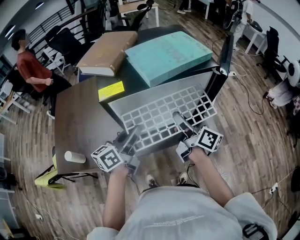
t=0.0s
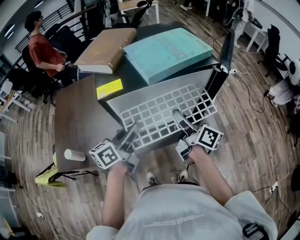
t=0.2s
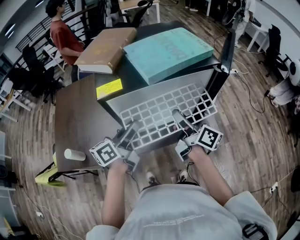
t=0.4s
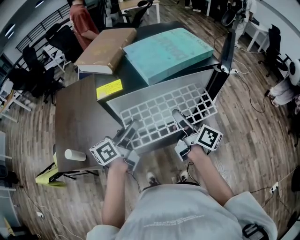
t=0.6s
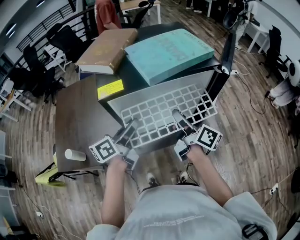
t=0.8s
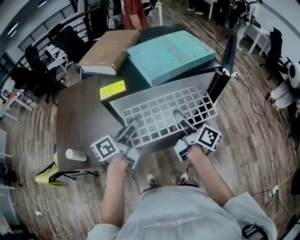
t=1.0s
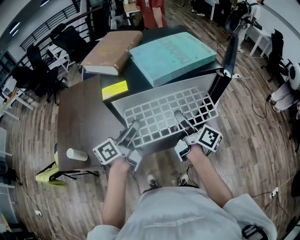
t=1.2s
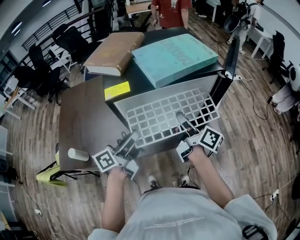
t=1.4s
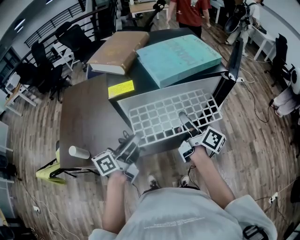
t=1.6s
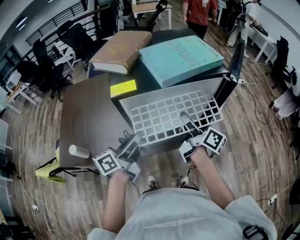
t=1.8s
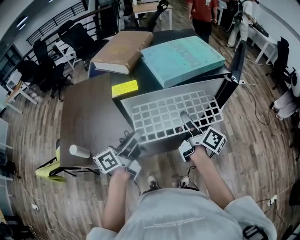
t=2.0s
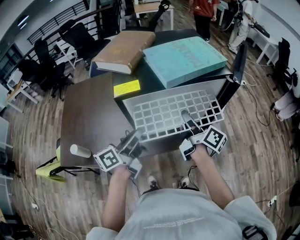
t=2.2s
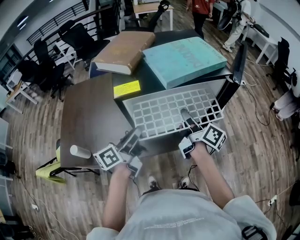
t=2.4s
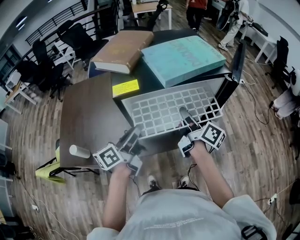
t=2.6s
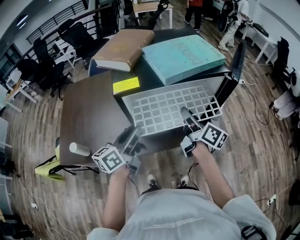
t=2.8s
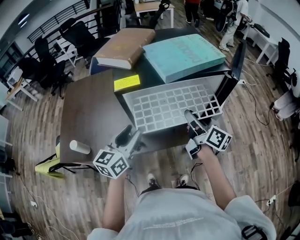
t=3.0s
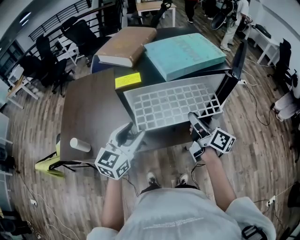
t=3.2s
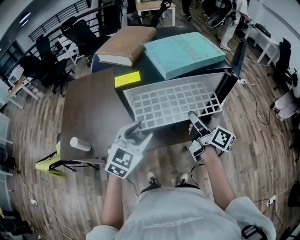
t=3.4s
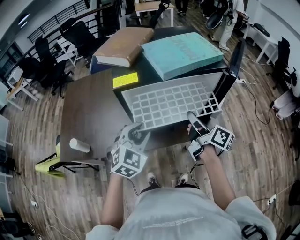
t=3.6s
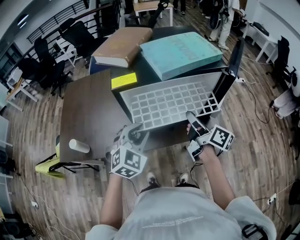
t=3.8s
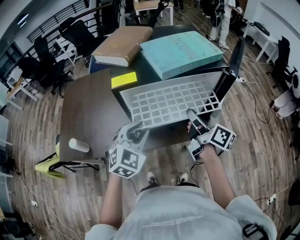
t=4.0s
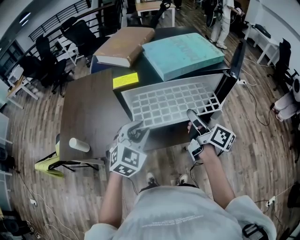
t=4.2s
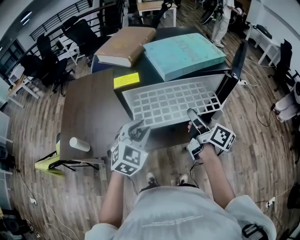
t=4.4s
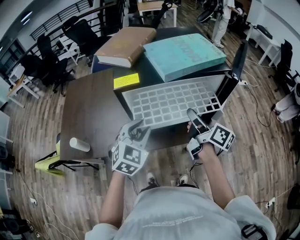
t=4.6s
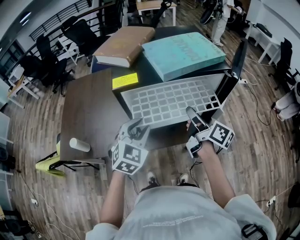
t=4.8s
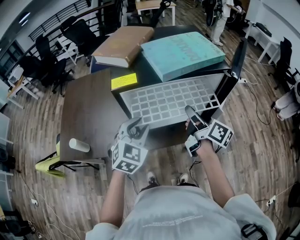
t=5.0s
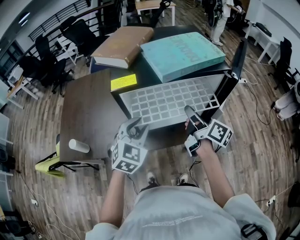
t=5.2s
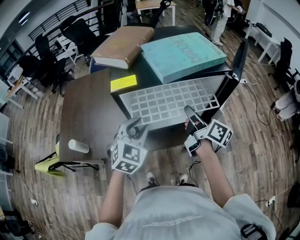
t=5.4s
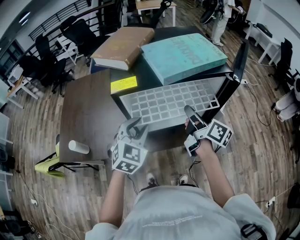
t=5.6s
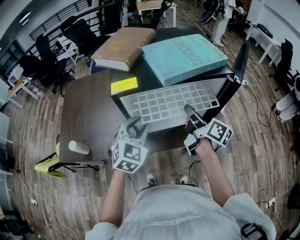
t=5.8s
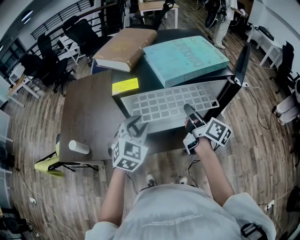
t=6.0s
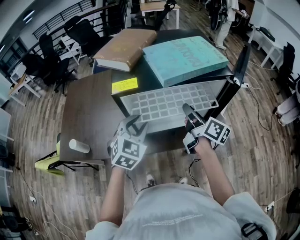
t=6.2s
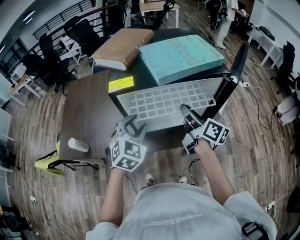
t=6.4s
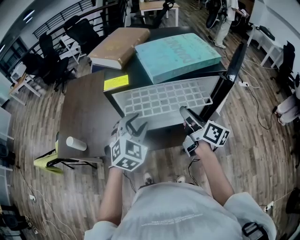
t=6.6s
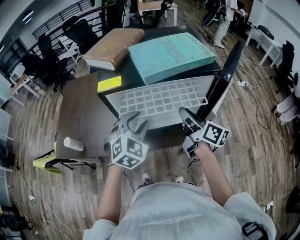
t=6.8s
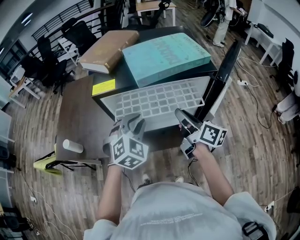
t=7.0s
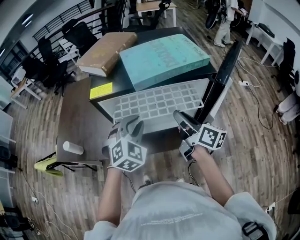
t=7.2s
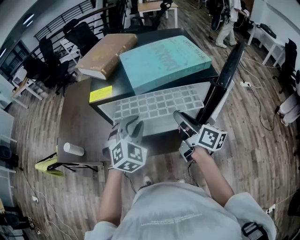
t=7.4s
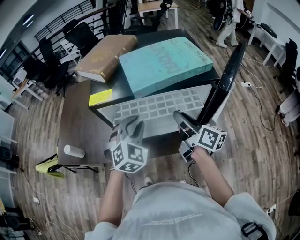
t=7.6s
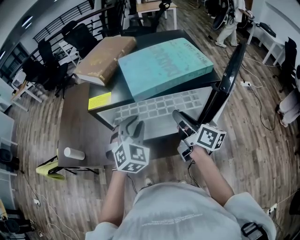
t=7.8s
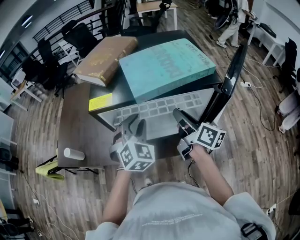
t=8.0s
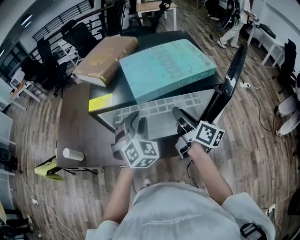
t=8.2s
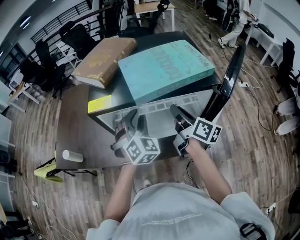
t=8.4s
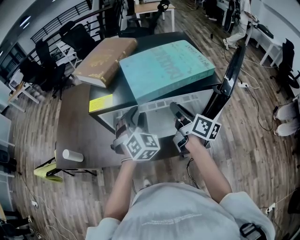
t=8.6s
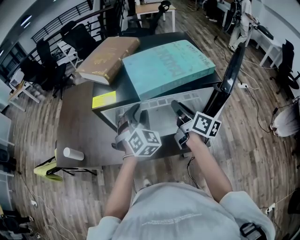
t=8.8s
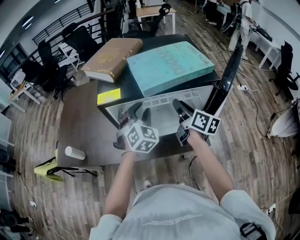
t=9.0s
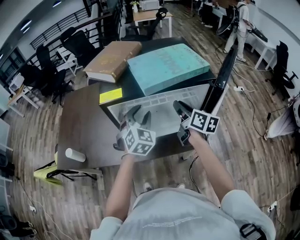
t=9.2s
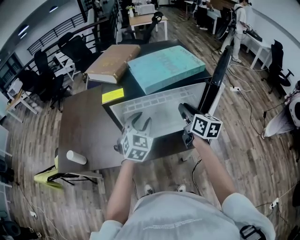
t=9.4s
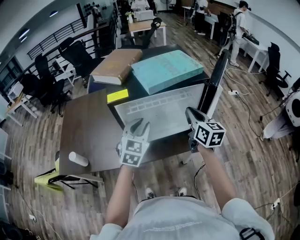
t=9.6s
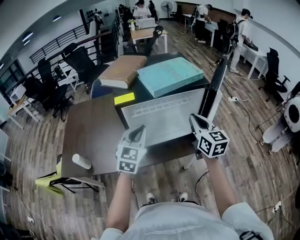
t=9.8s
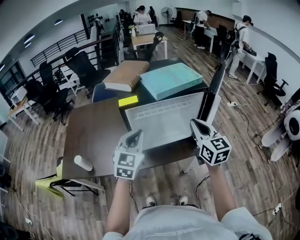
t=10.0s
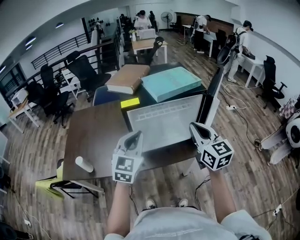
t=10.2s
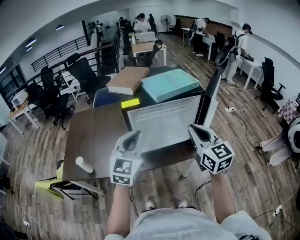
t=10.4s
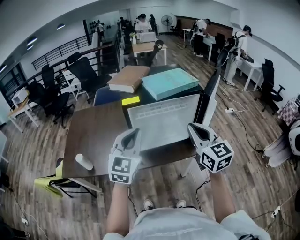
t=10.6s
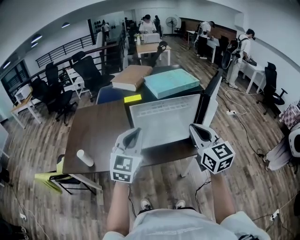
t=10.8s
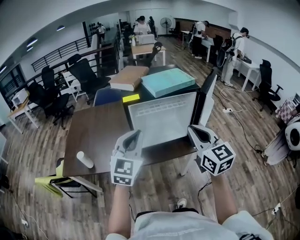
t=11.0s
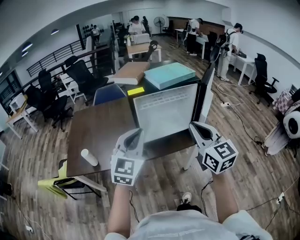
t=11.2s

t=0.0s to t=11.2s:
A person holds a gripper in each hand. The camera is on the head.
t=0.0s to t=1.6s: The grippers stay close to where they were, moving slightly.
t=1.6s to t=3.2s: The left gripper twists about 50 degrees clockwise, seen from behind, and opens its fingers.
t=3.2s to t=4.8s: The left gripper shifts by some 5 cm, turns by approximately 30 degrees, and closes its fingers.
t=4.8s to t=6.4s: The grippers move only a little.
t=6.4s to t=8.0s: The left gripper goes about 10 cm to the right and forward.
t=8.0s to t=9.6s: The left gripper changes place by some 5 cm, and swivels roughly 30 degrees. Meanwhile the right gripper is displaced backward by about 5 cm, and swivels about 40 degrees.
t=9.6s to t=11.2s: Both grippers move backward and upward, roughly 25 cm. The left gripper closes, while the right gripper changes its angle by roughly 20 degrees.

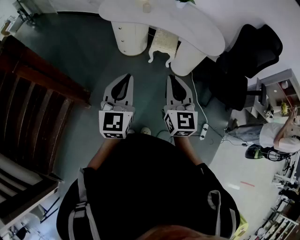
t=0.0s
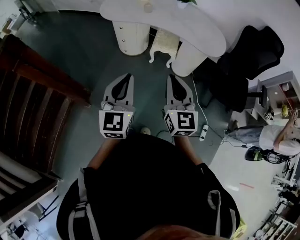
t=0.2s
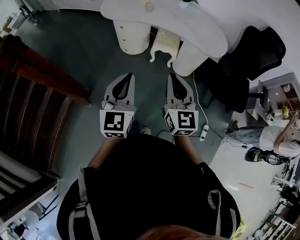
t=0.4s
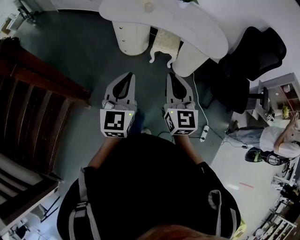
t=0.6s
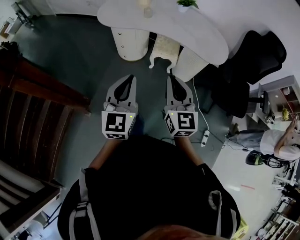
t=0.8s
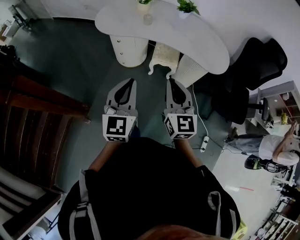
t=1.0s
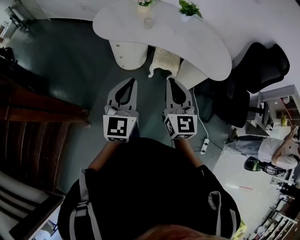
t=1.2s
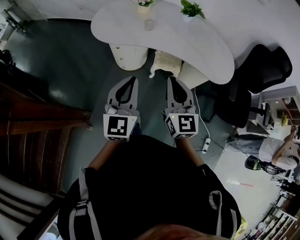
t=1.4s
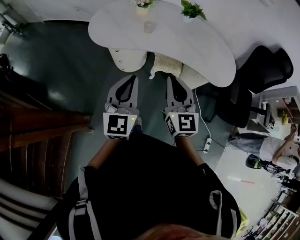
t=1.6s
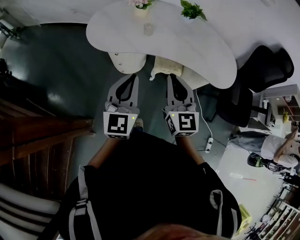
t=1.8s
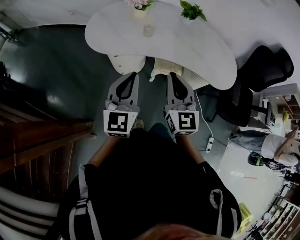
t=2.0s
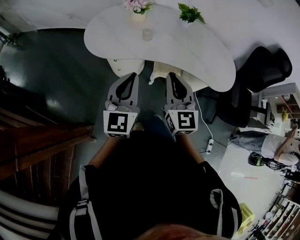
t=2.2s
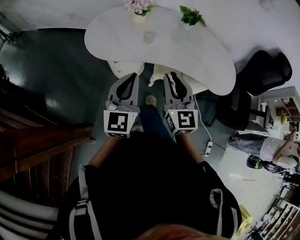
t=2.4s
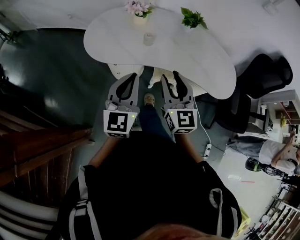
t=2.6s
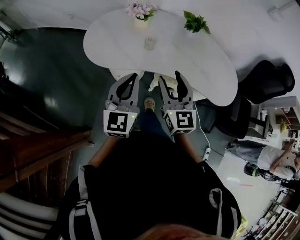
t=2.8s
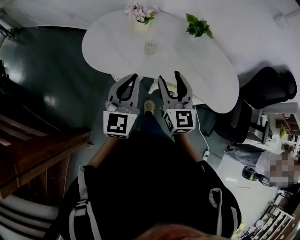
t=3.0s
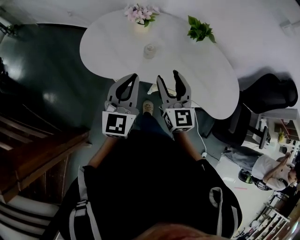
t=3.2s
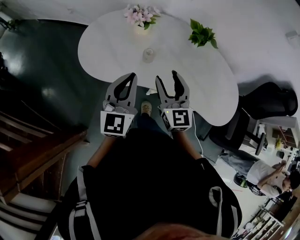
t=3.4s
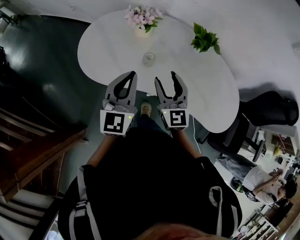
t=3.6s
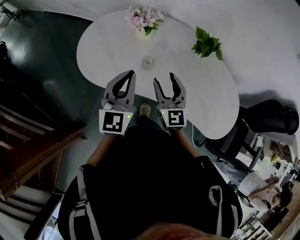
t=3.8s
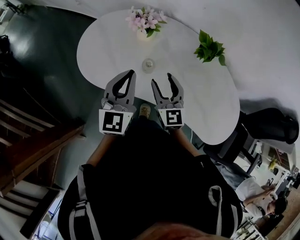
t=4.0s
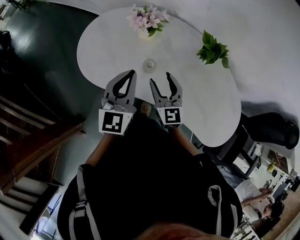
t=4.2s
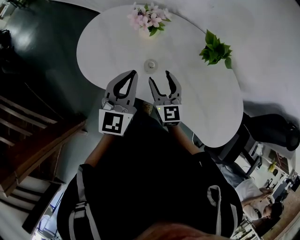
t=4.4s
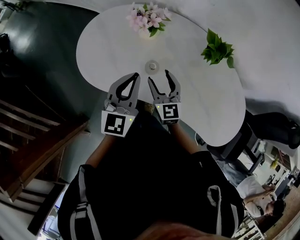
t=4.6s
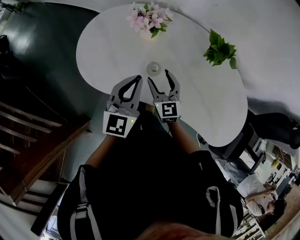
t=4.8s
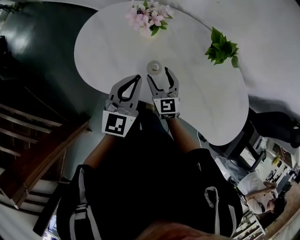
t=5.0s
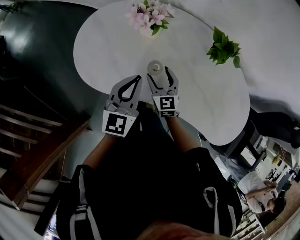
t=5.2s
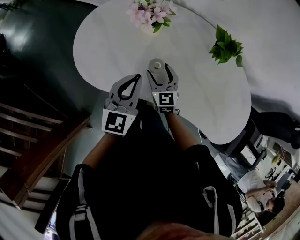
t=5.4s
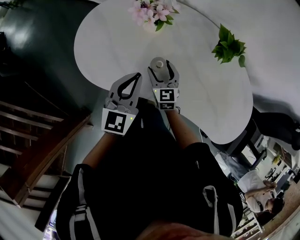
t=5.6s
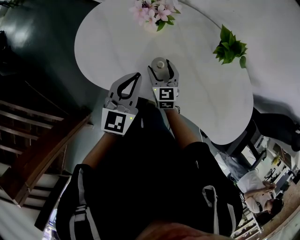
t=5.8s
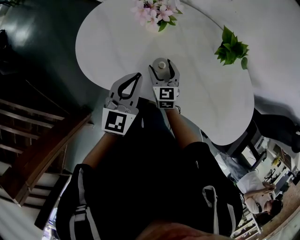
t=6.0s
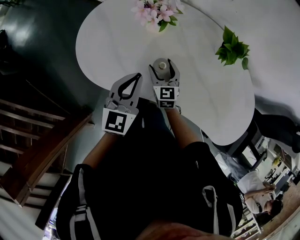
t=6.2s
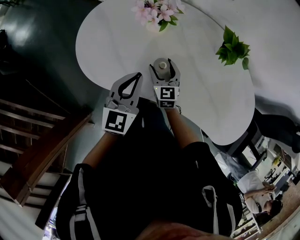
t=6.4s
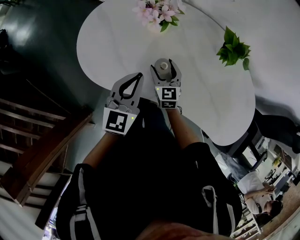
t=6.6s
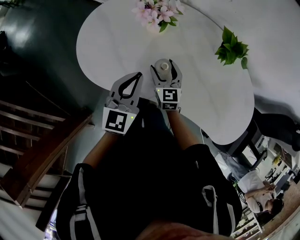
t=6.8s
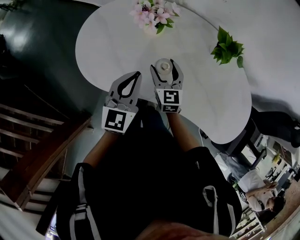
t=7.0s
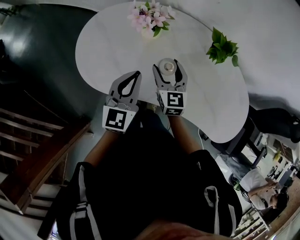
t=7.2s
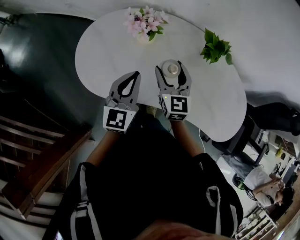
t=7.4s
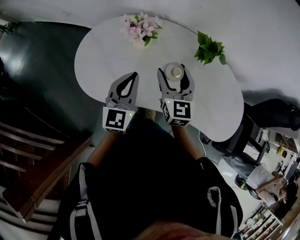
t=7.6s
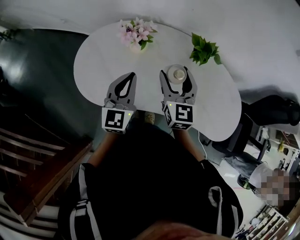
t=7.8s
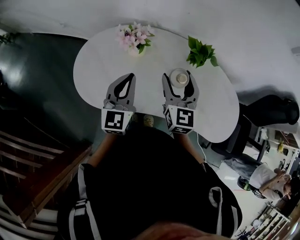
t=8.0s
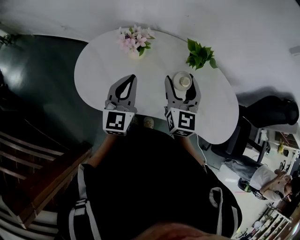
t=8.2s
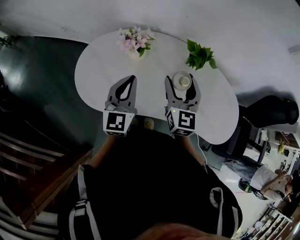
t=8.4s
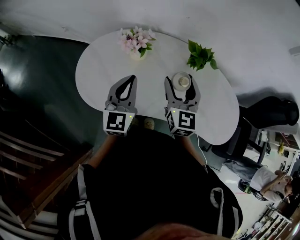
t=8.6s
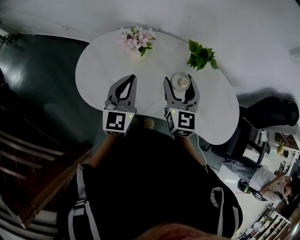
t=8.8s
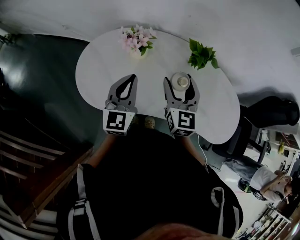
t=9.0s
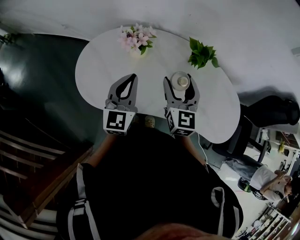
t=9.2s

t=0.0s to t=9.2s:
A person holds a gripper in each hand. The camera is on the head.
t=0.0s to t=1.6s: The two grippers go some 30 cm forward.
t=1.6s to t=3.0s: Both grippers travel together forward, some 20 cm. The right gripper opens its fingers.
t=3.0s to t=4.6s: The left gripper heads forward, covering some 20 cm. Meanwhile the right gripper goes roughly 25 cm forward and downward.
t=4.6s to t=6.2s: The left gripper moves downward, some 5 cm; the right gripper is displaced downward and forward by roughly 10 cm.
t=6.2s to t=7.6s: The right gripper is displaced upward by some 20 cm, while the left gripper moves upward, some 5 cm.
t=7.6s to t=9.2s: The right gripper ends up approximately 5 cm from where it was.

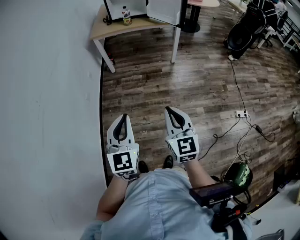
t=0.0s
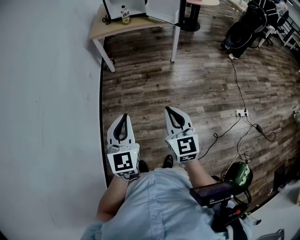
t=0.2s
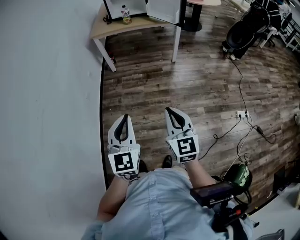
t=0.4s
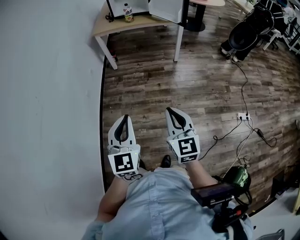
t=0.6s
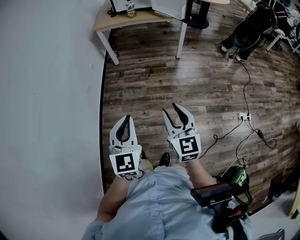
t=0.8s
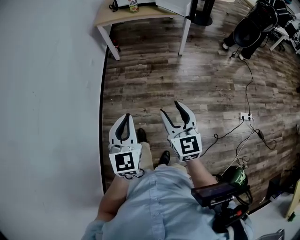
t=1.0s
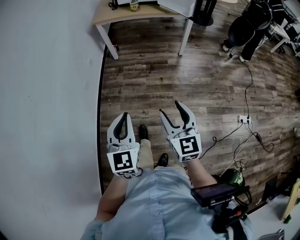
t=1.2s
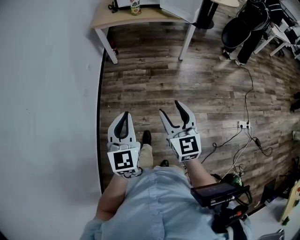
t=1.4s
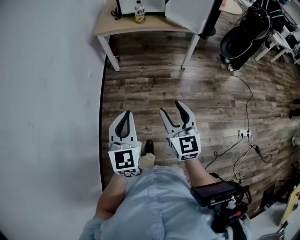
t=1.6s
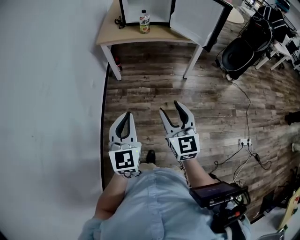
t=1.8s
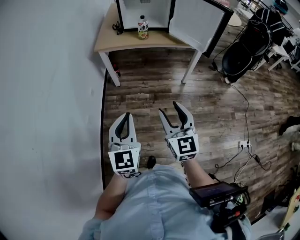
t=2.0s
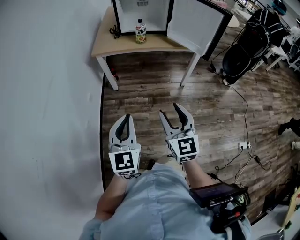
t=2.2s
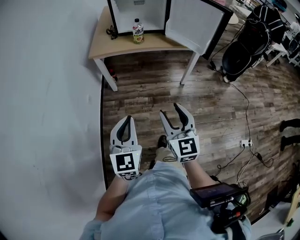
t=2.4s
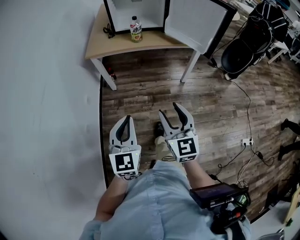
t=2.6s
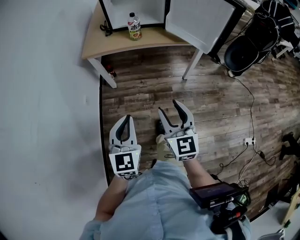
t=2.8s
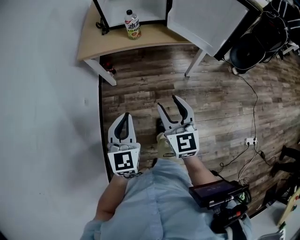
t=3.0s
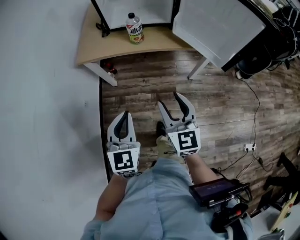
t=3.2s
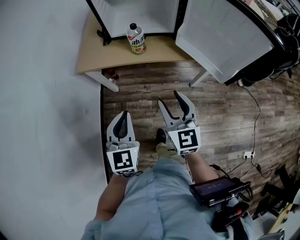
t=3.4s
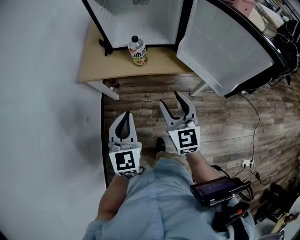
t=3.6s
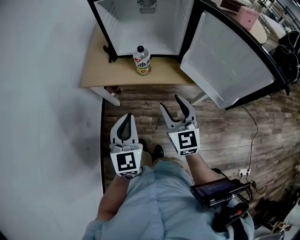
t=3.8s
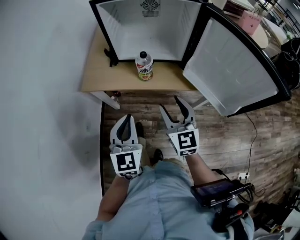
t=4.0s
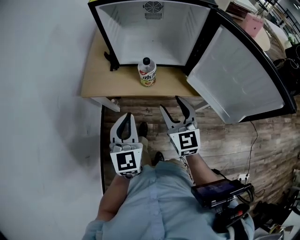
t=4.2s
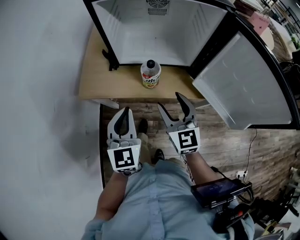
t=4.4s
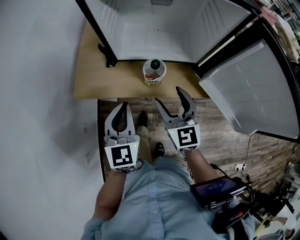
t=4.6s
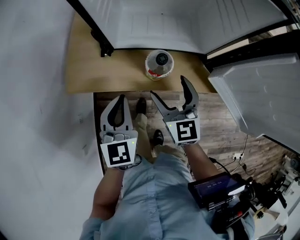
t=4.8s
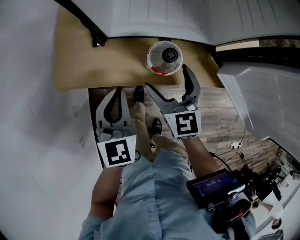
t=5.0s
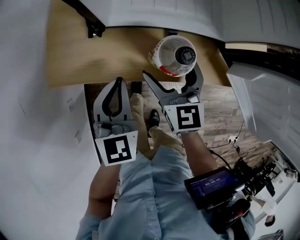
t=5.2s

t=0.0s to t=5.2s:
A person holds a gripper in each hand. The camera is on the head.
t=0.0s to t=1.8s: The two grippers go roughly 30 cm forward. The right gripper opens up.
t=1.8s to t=3.4s: The two grippers travel together, forward, approximately 40 cm.
t=3.4s to t=5.2s: The two grippers go roughly 40 cm forward and downward. The right gripper opens.
